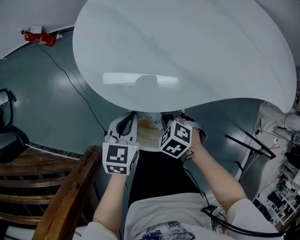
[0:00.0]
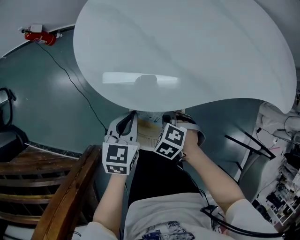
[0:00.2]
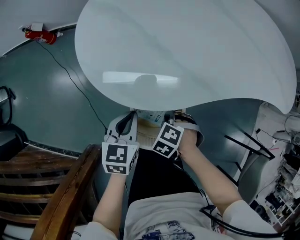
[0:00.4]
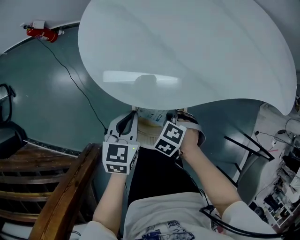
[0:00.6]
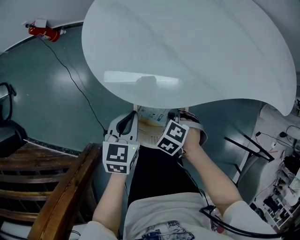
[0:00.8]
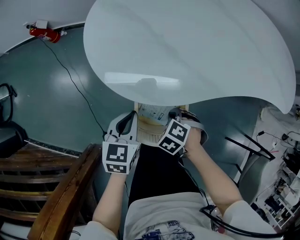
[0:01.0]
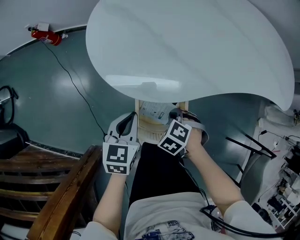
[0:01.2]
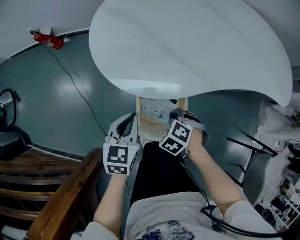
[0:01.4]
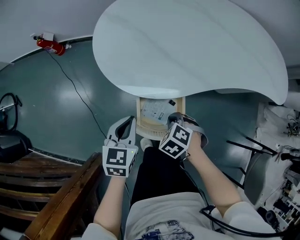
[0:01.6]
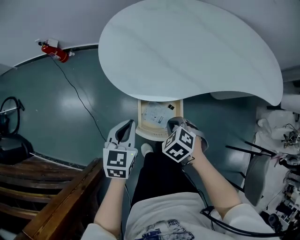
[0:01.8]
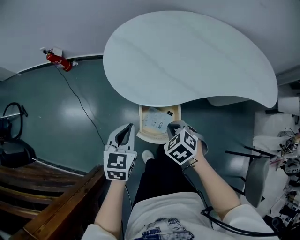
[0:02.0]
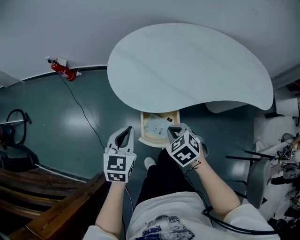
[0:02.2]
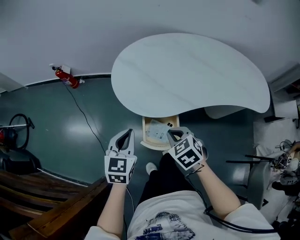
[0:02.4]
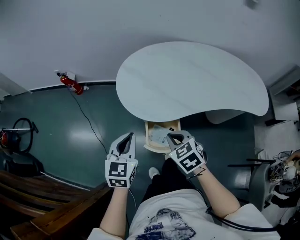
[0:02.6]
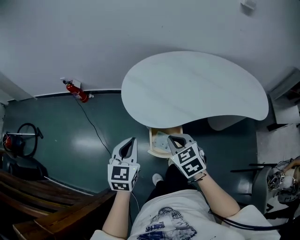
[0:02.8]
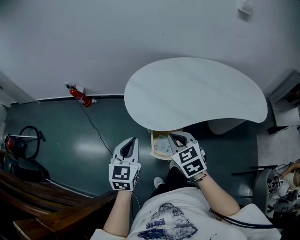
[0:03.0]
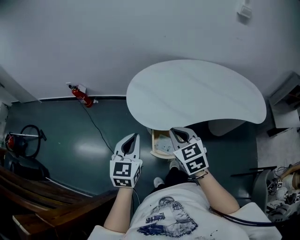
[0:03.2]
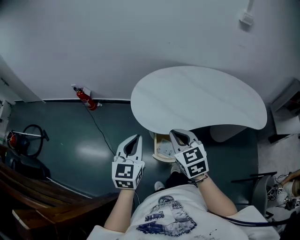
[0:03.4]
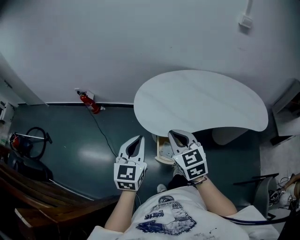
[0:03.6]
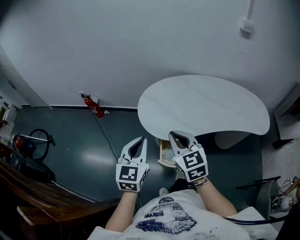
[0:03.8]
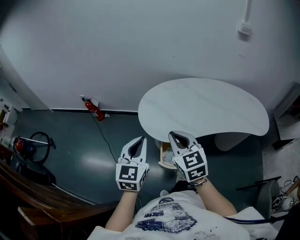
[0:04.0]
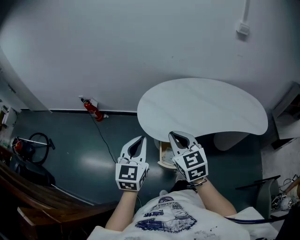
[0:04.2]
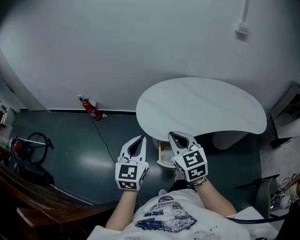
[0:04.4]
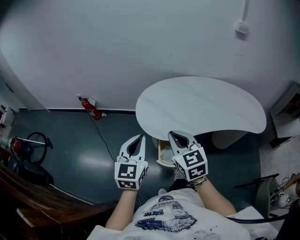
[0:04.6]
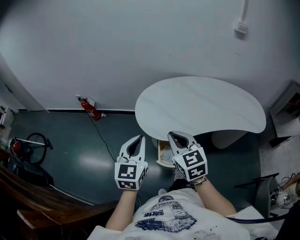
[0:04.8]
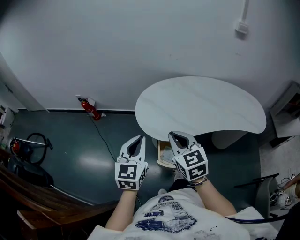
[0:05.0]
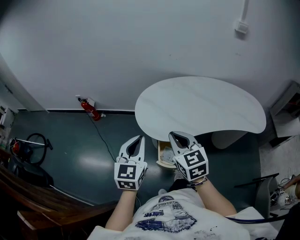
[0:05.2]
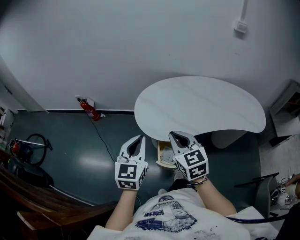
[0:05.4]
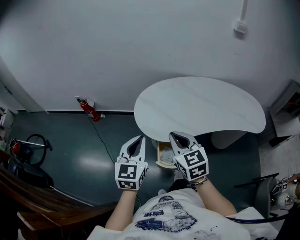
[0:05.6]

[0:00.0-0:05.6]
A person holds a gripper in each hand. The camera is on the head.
0:00.0 to 0:01.4: The left gripper shifts by approximately 5 cm.
0:01.4 to 0:02.8: Both grippers move upward, some 25 cm. The right gripper tilts its fingers approximately 40 degrees upward.
0:02.8 to 0:04.2: The grippers both shift upward by roughly 15 cm. The right gripper rotates some 30 degrees.
0:04.2 to 0:05.6: The grippers stay close to where they were, moving slightly.

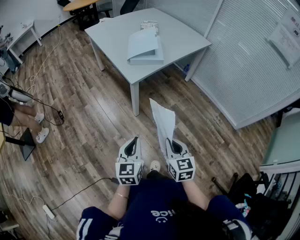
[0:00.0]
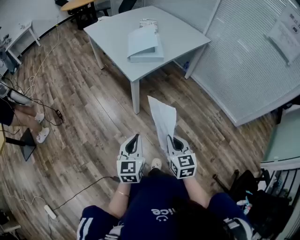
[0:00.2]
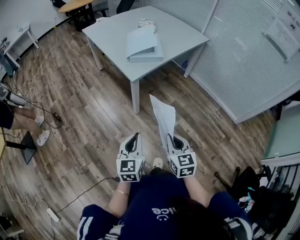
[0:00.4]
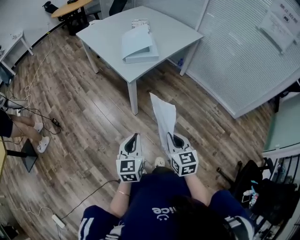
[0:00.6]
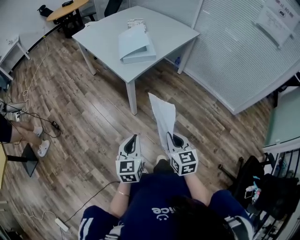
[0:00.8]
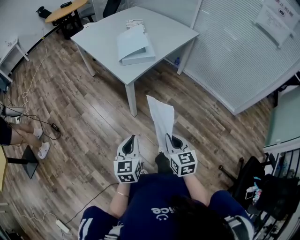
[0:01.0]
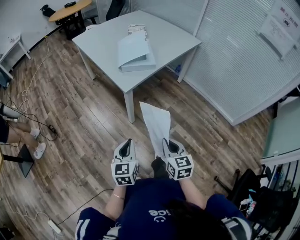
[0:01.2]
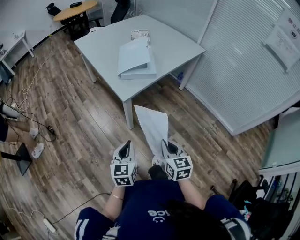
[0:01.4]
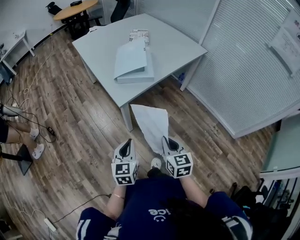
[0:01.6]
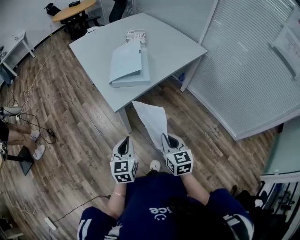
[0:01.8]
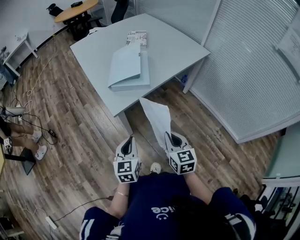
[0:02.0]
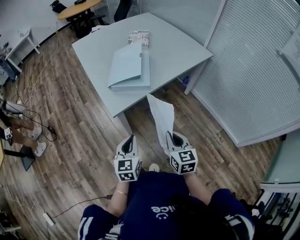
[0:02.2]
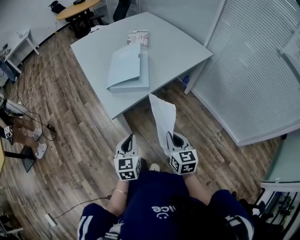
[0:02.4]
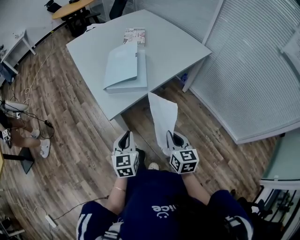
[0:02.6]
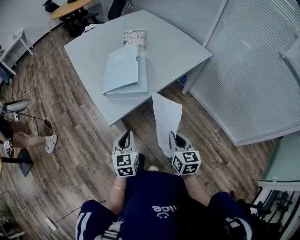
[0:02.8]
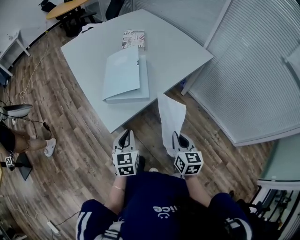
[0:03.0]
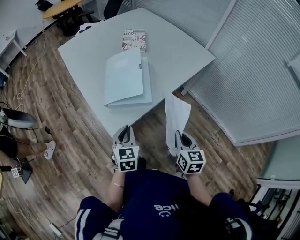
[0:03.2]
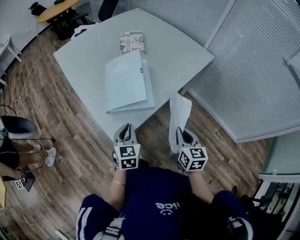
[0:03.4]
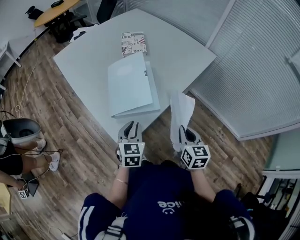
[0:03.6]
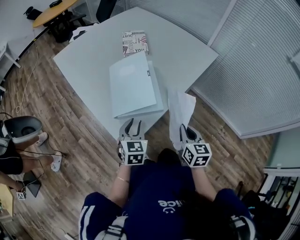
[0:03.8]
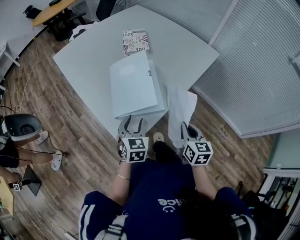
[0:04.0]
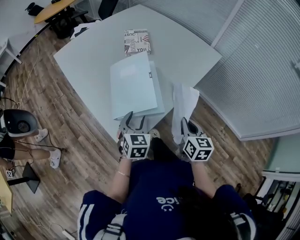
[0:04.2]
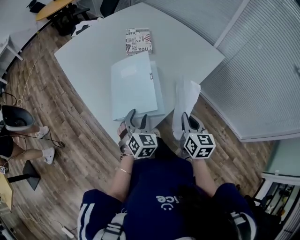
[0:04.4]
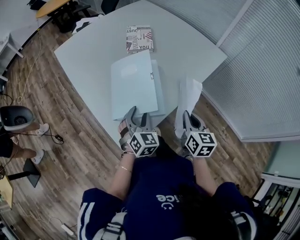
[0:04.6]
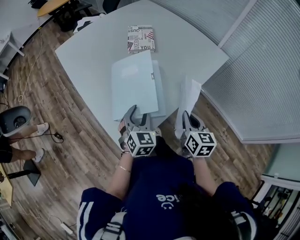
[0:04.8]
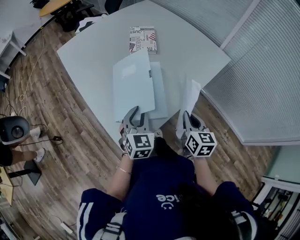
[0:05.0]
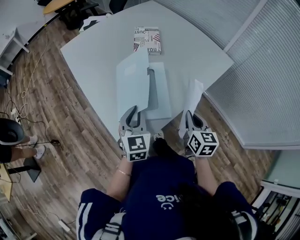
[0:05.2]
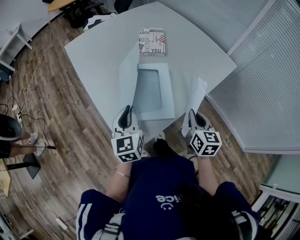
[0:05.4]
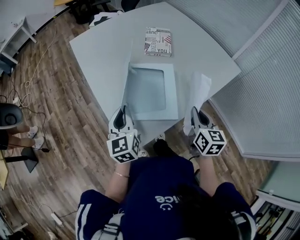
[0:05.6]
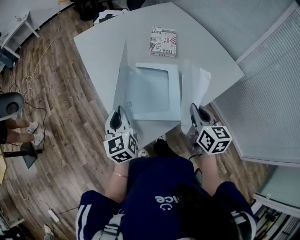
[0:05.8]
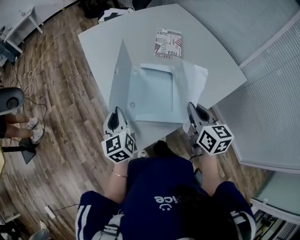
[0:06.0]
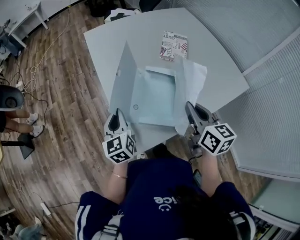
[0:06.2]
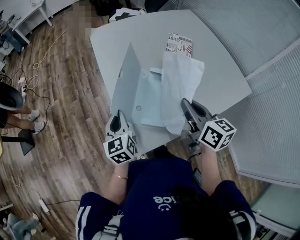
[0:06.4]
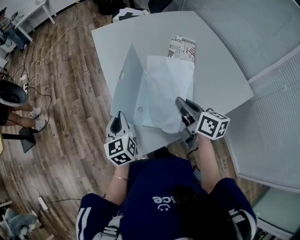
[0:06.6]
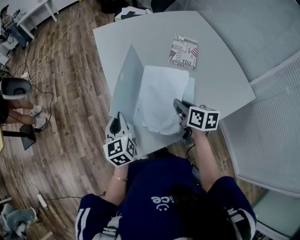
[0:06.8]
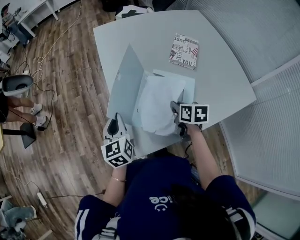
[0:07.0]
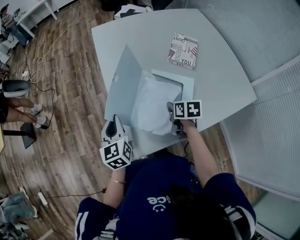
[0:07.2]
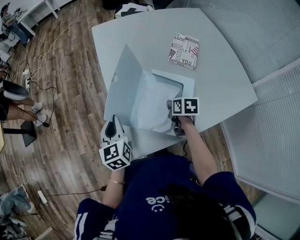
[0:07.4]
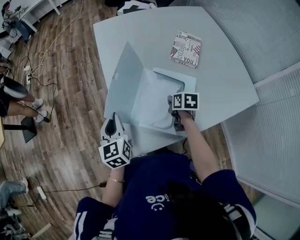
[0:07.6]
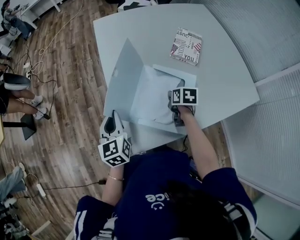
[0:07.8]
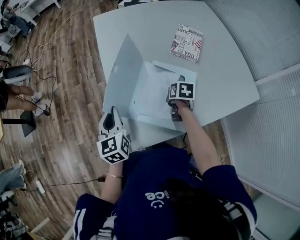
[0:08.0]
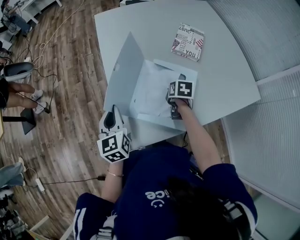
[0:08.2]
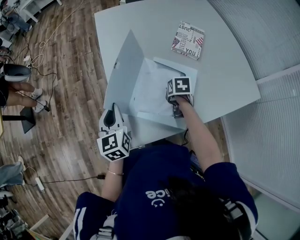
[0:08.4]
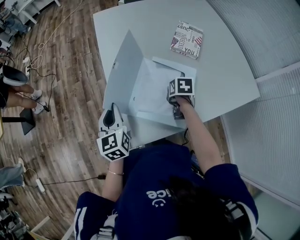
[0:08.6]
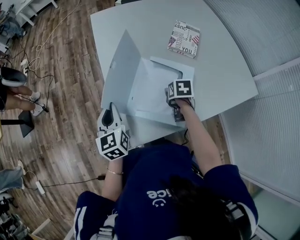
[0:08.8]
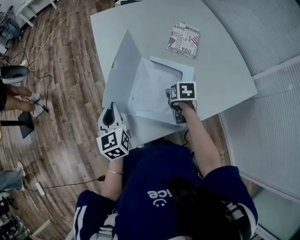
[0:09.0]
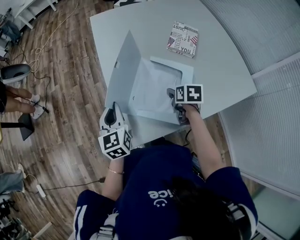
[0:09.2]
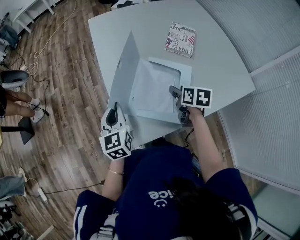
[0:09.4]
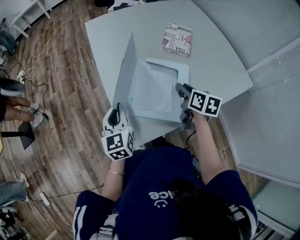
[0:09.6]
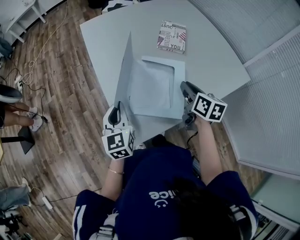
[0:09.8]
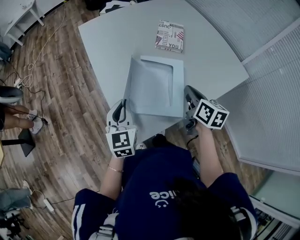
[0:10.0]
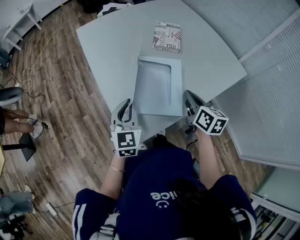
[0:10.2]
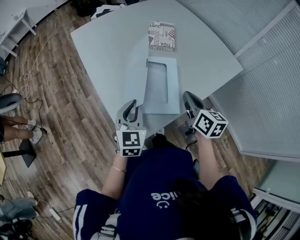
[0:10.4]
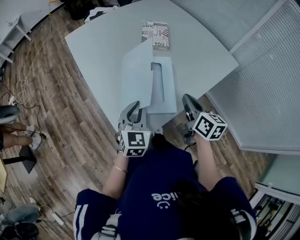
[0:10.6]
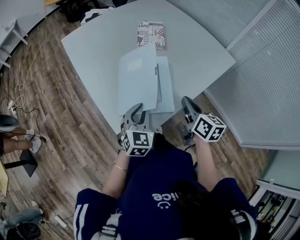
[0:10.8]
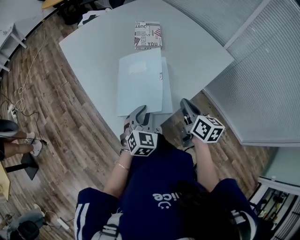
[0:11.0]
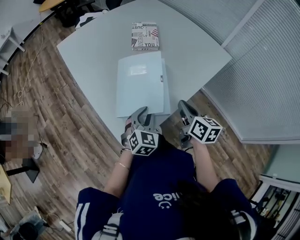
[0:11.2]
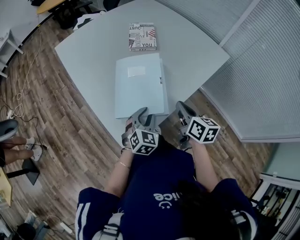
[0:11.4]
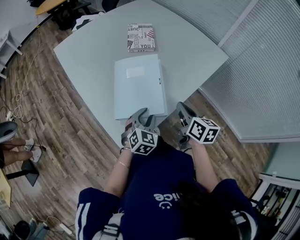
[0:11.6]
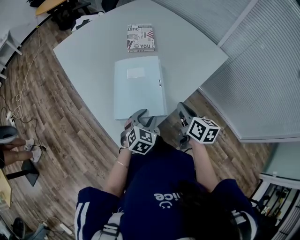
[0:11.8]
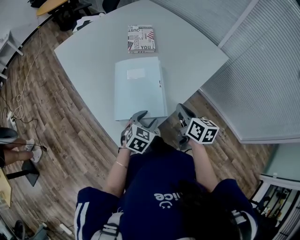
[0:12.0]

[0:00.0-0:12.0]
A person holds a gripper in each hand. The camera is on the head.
0:00.0 to 0:01.6: The two grippers go some 15 cm forward.
0:01.6 to 0:03.0: The right gripper travels forward and to the right by approximately 20 cm. The left gripper heads forward, covering about 20 cm.
0:03.0 to 0:04.4: The two grippers go roughly 20 cm forward. The left gripper rotates roughly 30 degrees, and opens.
0:04.4 to 0:06.0: The right gripper goes roughly 15 cm forward, to the left and upward, and turns by roughly 20 degrees; the left gripper is displaced to the left by some 20 cm, rotates around the line of its fingers by approximately 50 degrees, counterclockwise from behind, and closes its fingers.
0:06.0 to 0:07.6: The right gripper travels downward and forward by about 25 cm, and angles its fingers downward, by approximately 30 degrees.
0:07.6 to 0:09.0: The right gripper opens.
0:09.0 to 0:10.4: The left gripper goes approximately 15 cm to the right, and swivels about 40 degrees, while the right gripper shifts some 20 cm upward and backward, points its fingers some 40 degrees further upward, and closes.
0:10.4 to 0:12.0: The right gripper goes approximately 5 cm to the right. The left gripper heads to the right and downward, covering about 15 cm, turns by some 40 degrees, and opens up.

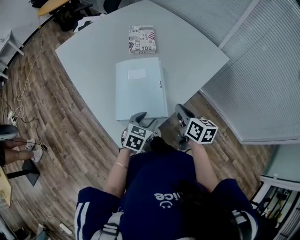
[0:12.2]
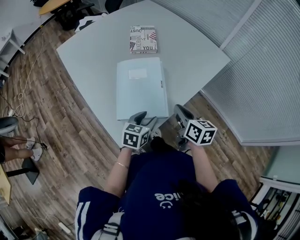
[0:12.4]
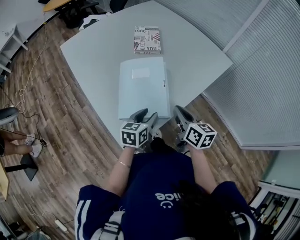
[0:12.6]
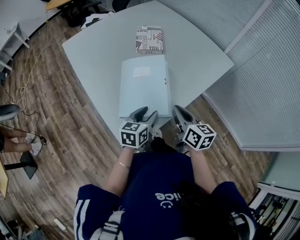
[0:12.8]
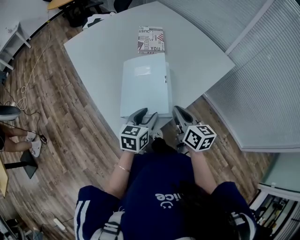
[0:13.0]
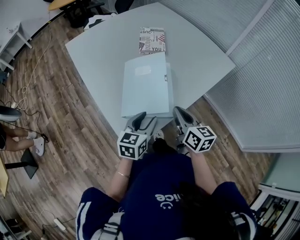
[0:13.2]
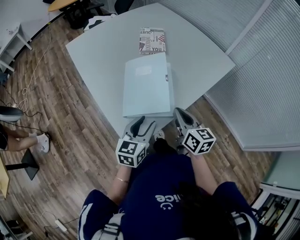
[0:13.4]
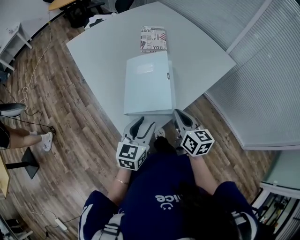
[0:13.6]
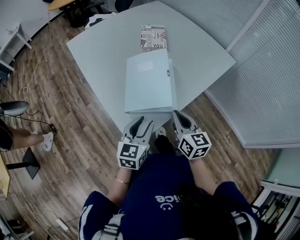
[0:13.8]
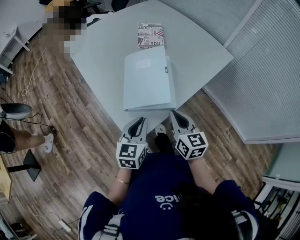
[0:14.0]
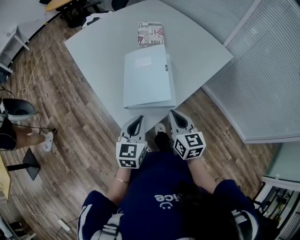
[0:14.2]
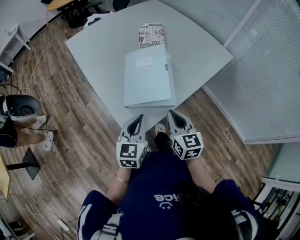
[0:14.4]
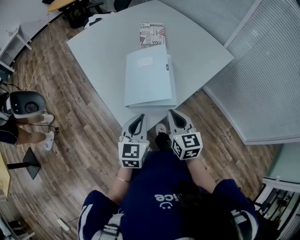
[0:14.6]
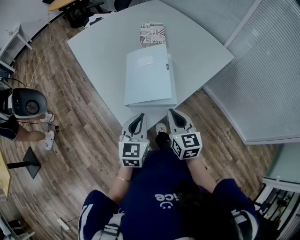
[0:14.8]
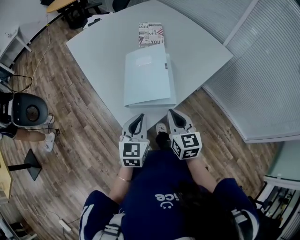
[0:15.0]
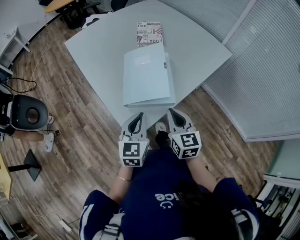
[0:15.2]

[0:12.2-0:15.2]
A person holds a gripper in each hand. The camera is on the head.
0:12.2 to 0:13.8: The right gripper goes roughly 10 cm backward and to the left. The left gripper shifts about 15 cm upward, to the left and backward, and changes its angle by roughly 30 degrees.
0:13.8 to 0:15.2: The left gripper closes up.

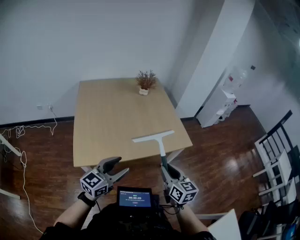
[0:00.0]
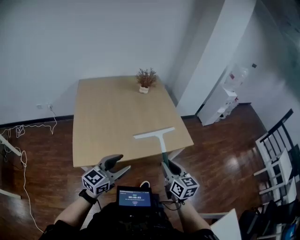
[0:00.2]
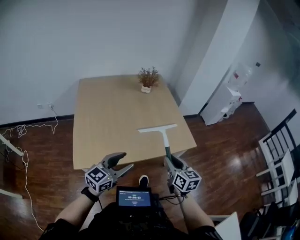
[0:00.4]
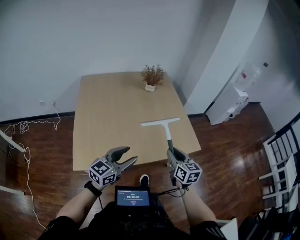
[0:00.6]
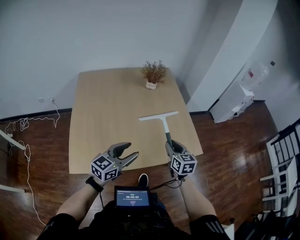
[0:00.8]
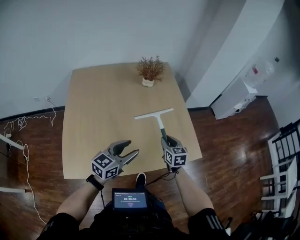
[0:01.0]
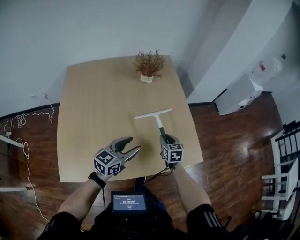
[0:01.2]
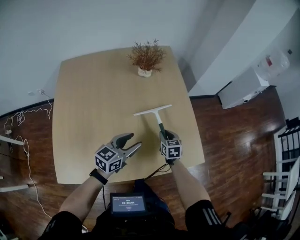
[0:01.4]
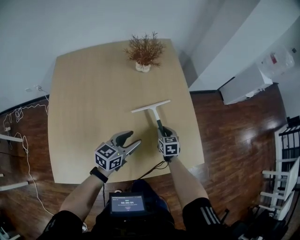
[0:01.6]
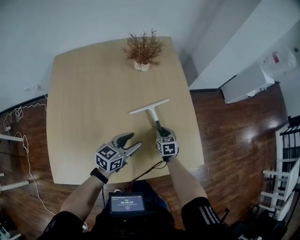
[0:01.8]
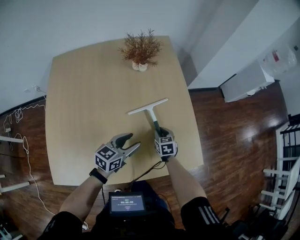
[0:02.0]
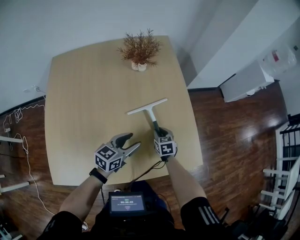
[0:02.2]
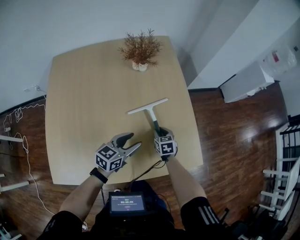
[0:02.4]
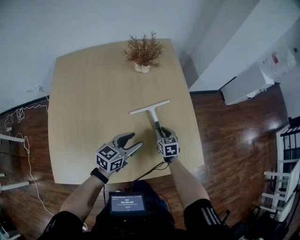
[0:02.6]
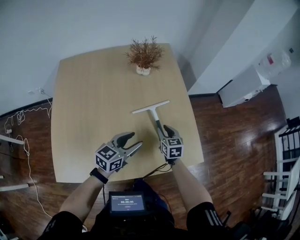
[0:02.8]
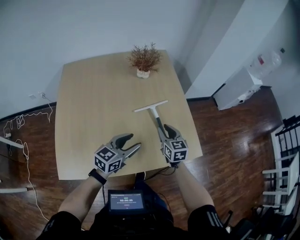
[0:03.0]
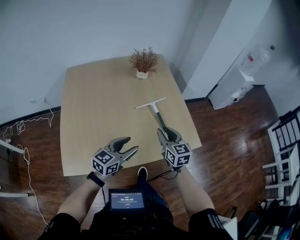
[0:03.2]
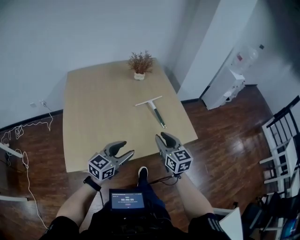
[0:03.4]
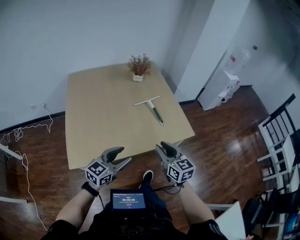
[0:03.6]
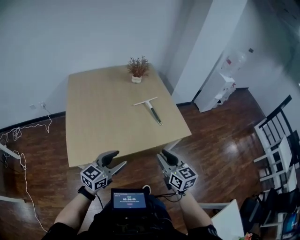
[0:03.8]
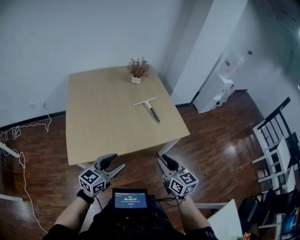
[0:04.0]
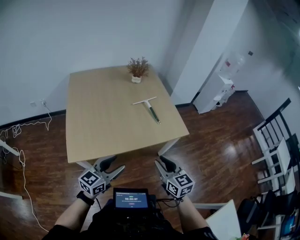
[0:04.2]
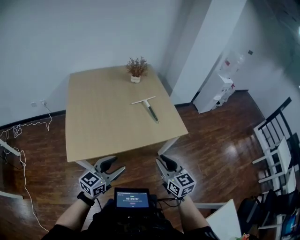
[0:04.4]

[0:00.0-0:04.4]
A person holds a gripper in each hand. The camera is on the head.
0:00.0 to 0:01.4: Both grippers are carried forward, approximately 40 cm. The right gripper heads downward, covering roughly 30 cm, and rotates some 30 degrees.
0:01.4 to 0:03.0: The left gripper goes some 5 cm backward, and reaches roughly 5 cm downward, then returns; the right gripper goes roughly 15 cm upward.
0:03.0 to 0:04.4: The left gripper travels backward by about 35 cm; the right gripper shifts roughly 40 cm backward and upward.
